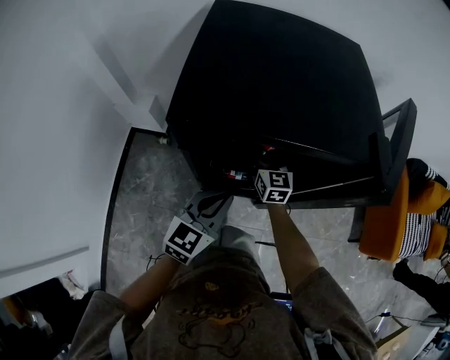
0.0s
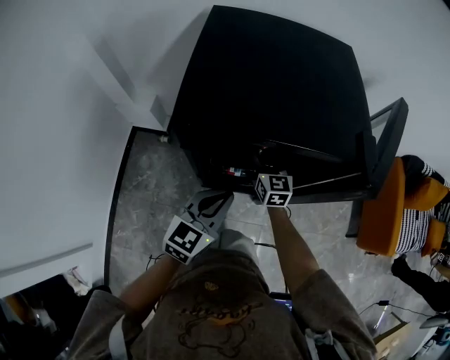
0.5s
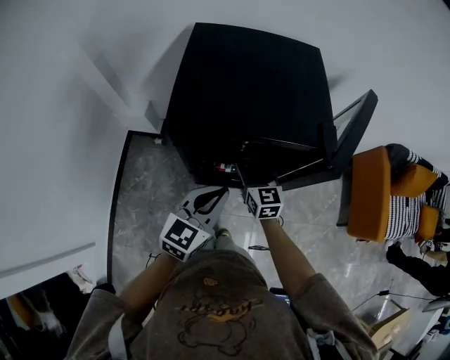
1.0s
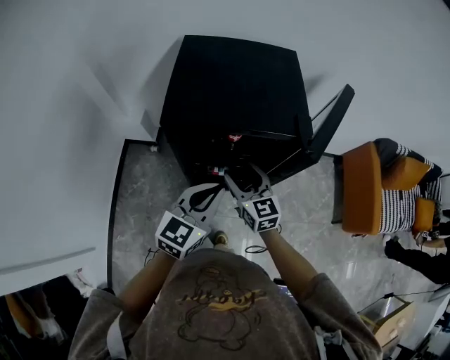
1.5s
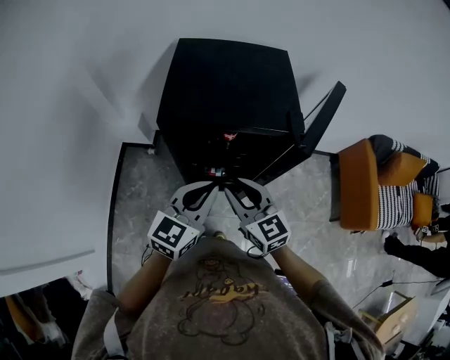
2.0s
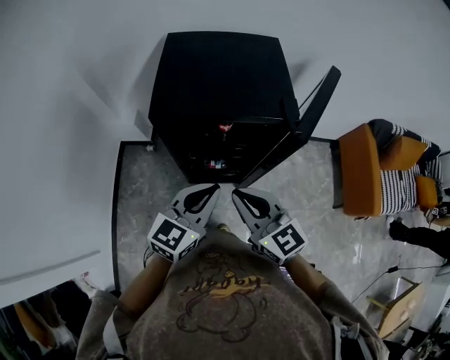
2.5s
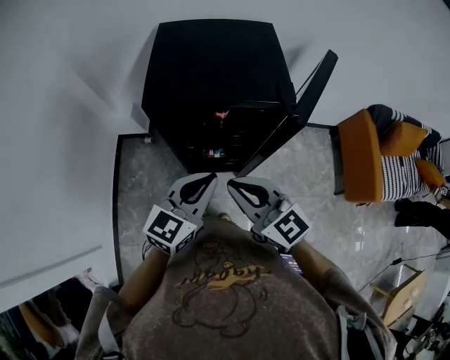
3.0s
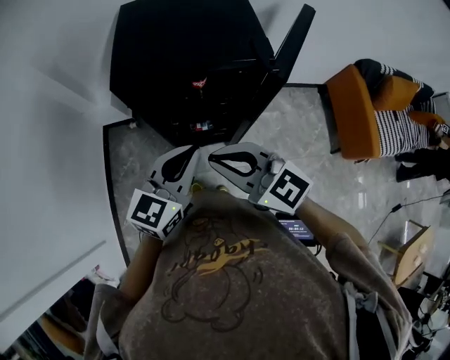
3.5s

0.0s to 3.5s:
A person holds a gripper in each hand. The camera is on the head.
0.0s to 2.0s: The left gripper heads upward, covering approximately 20 cm, while the right gripper moves backward and upward, about 35 cm, and closes.
2.0s to 3.5s: The right gripper heads backward and upward, covering approximately 10 cm, and closes its fingers.

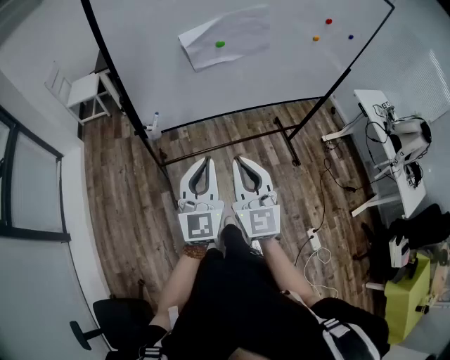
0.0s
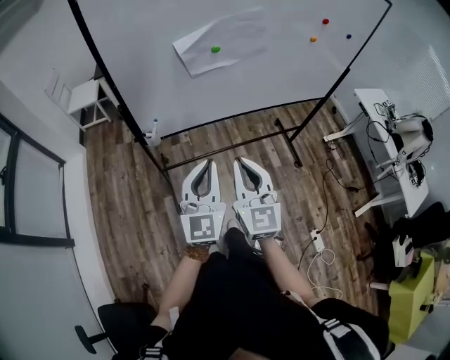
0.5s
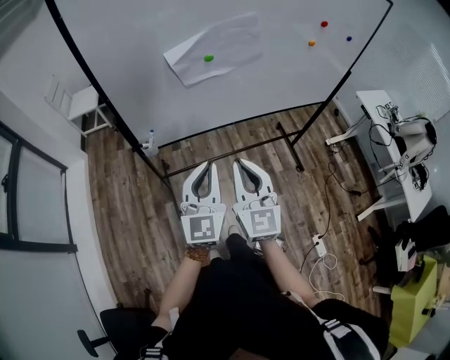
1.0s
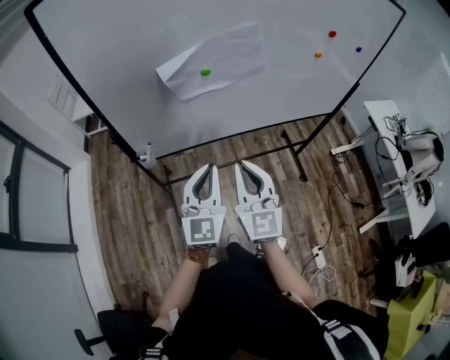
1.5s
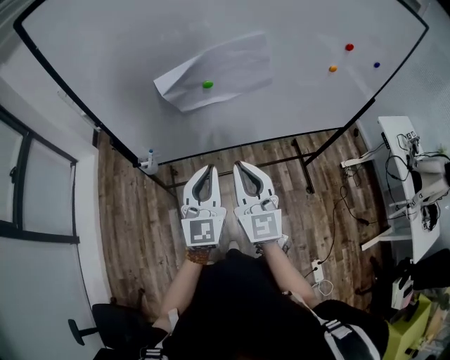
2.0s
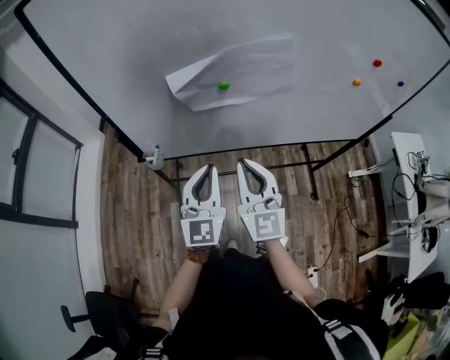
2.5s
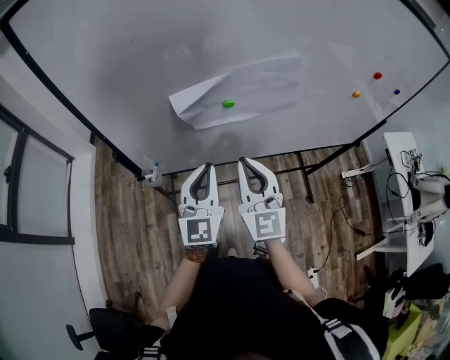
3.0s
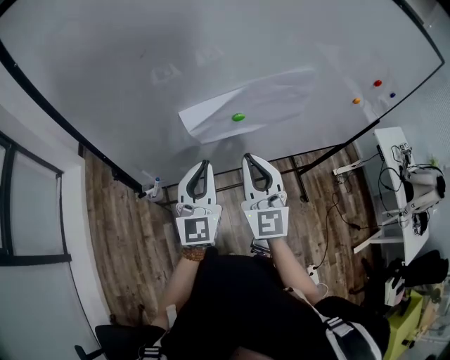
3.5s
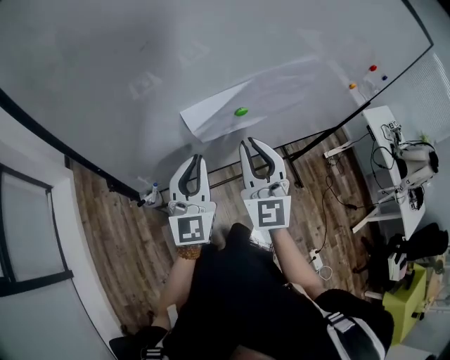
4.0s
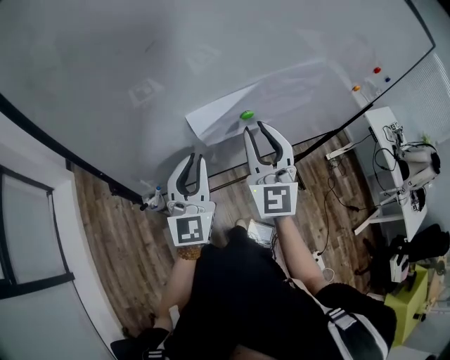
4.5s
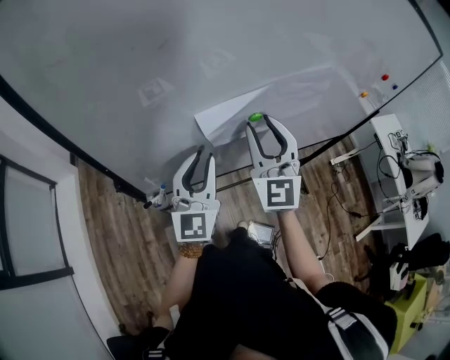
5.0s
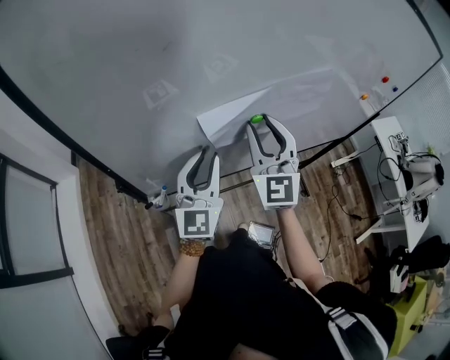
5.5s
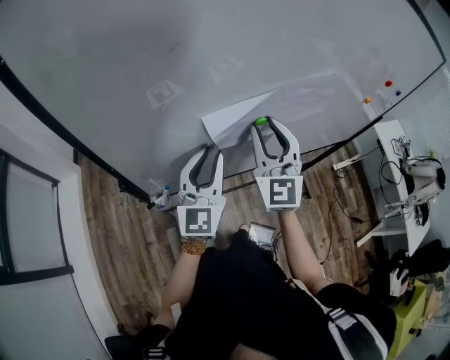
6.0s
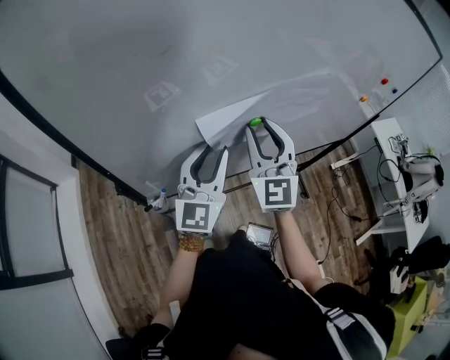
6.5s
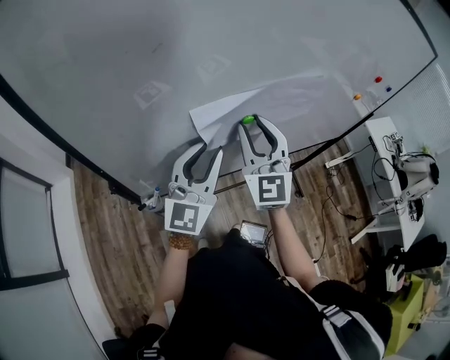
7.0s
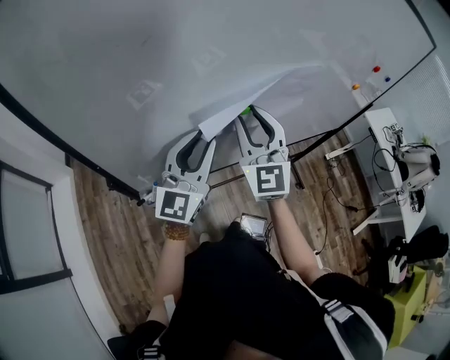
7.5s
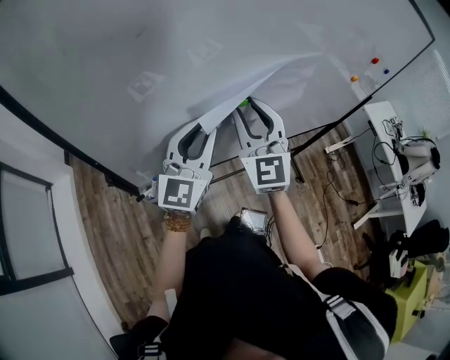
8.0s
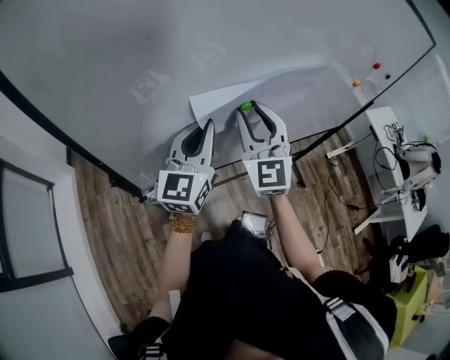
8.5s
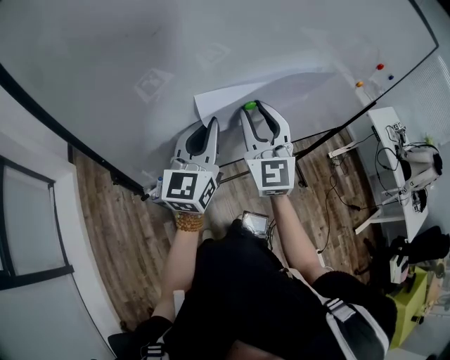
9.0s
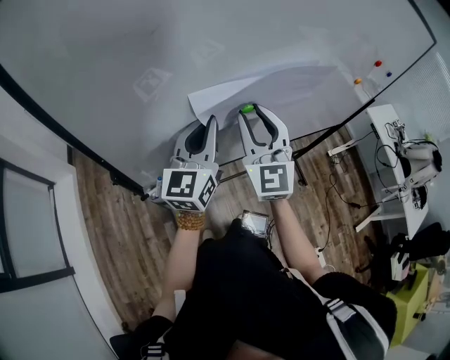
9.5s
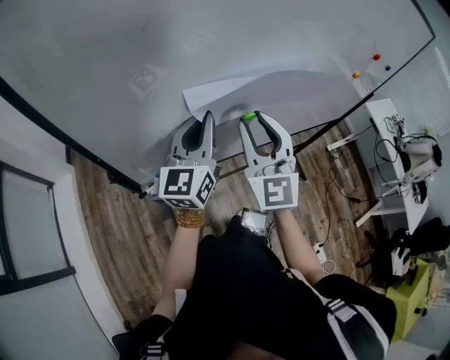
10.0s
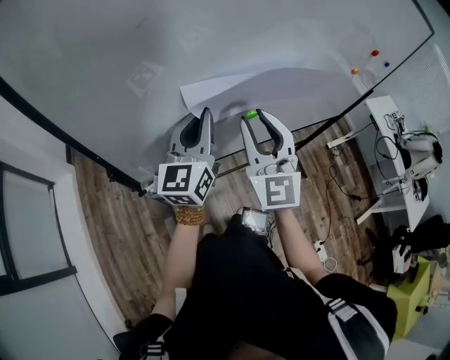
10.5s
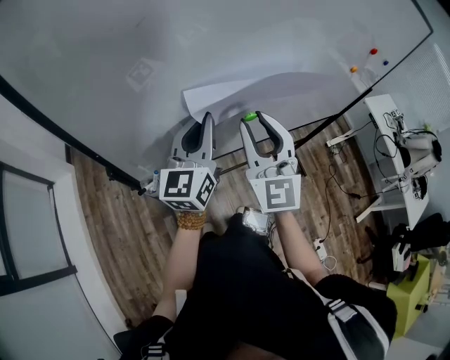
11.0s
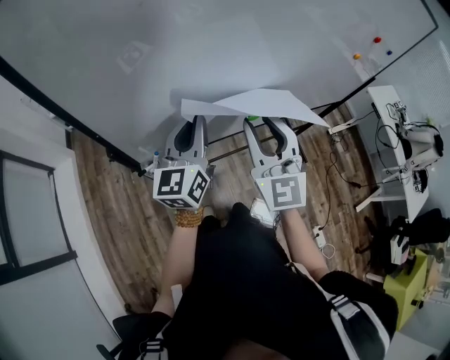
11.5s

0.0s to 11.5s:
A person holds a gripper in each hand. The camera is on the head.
0.0s to 2.0s: The grippers both shift forward and to the right by approximately 20 cm.
2.0s to 4.0s: The right gripper is displaced forward by roughly 15 cm. The left gripper goes about 20 cm forward and to the left.
4.0s to 6.0s: The right gripper is displaced forward by some 5 cm.
6.0s to 7.5s: The grippers stay close to where they were, moving slightly.
7.5s to 9.5s: The left gripper closes up.
9.5s to 11.5s: The right gripper moves backward, roughly 10 cm, while the left gripper moves approximately 5 cm.

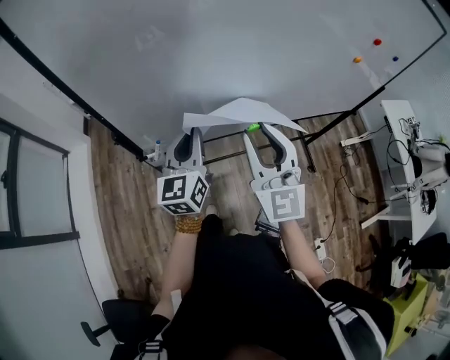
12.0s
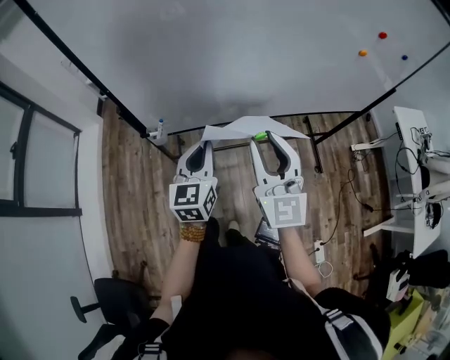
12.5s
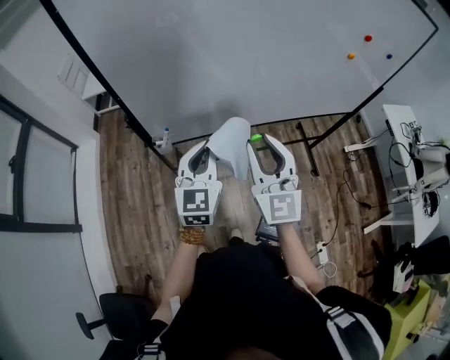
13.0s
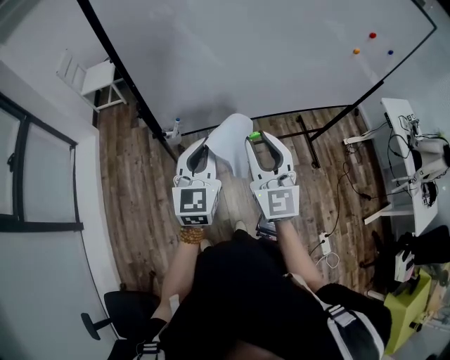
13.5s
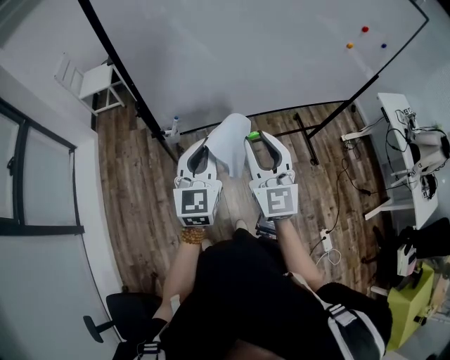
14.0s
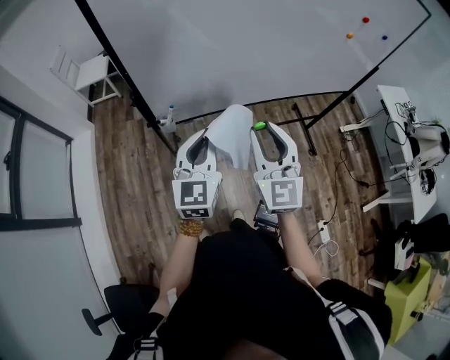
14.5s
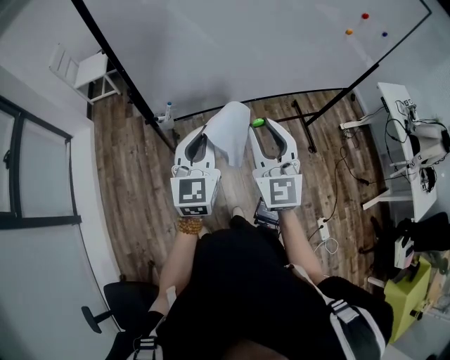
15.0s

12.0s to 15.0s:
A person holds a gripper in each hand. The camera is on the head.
12.0s to 13.5s: The left gripper goes about 10 cm backward. Meanwhile the right gripper moves backward and to the left, approximately 10 cm.
13.5s to 15.0s: There are only small adjustments of the grippers.

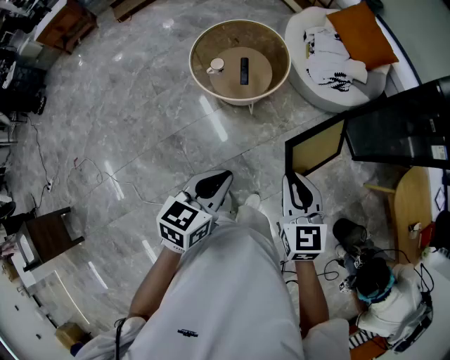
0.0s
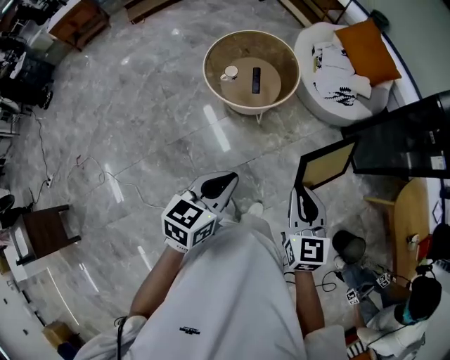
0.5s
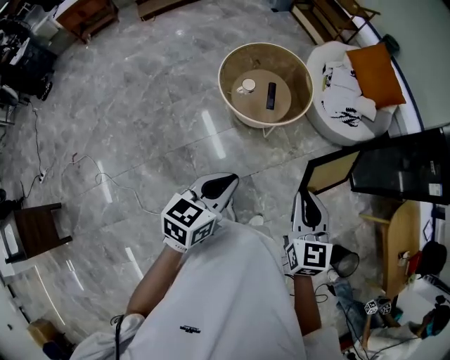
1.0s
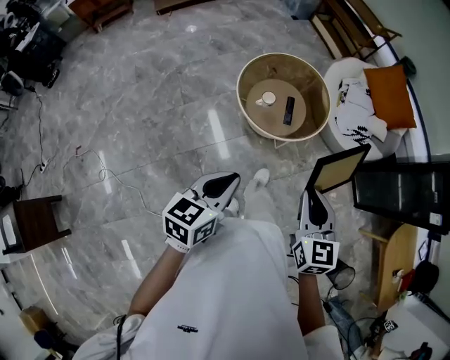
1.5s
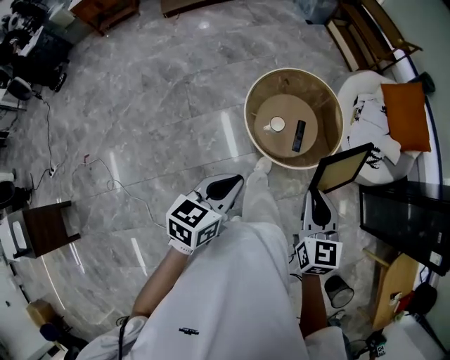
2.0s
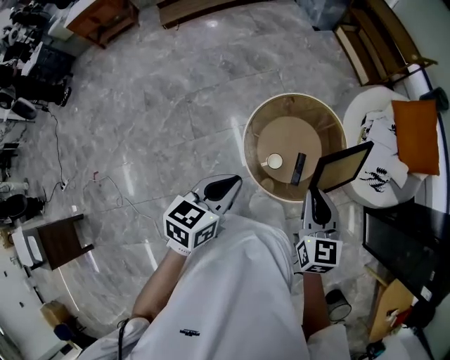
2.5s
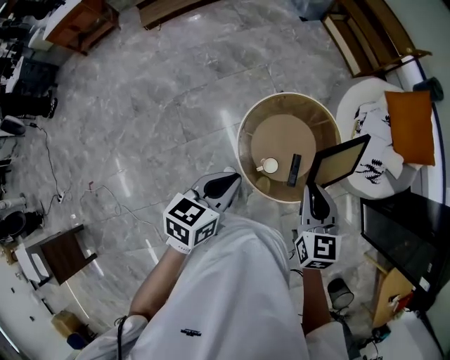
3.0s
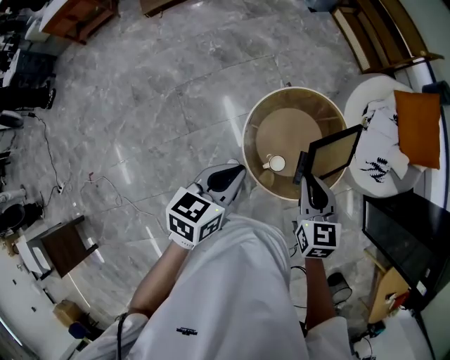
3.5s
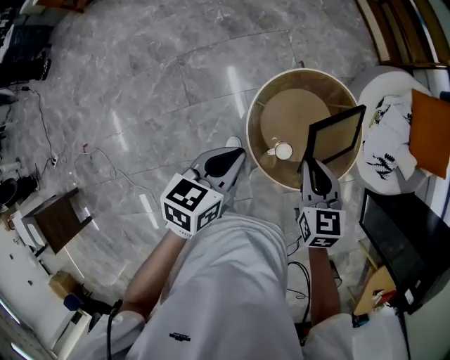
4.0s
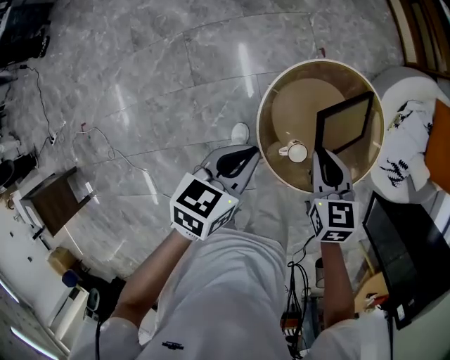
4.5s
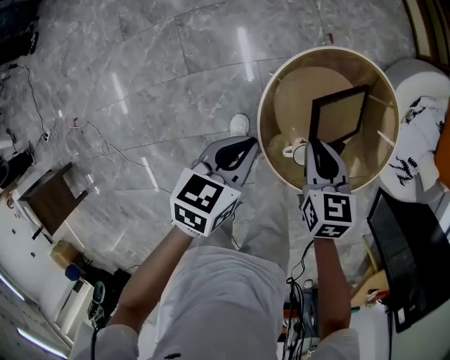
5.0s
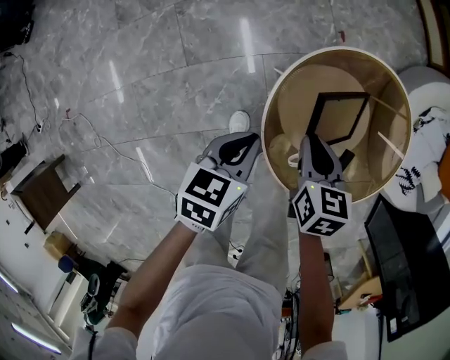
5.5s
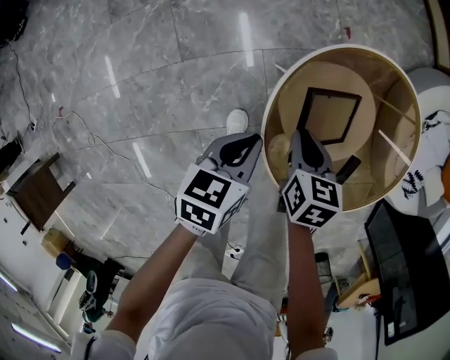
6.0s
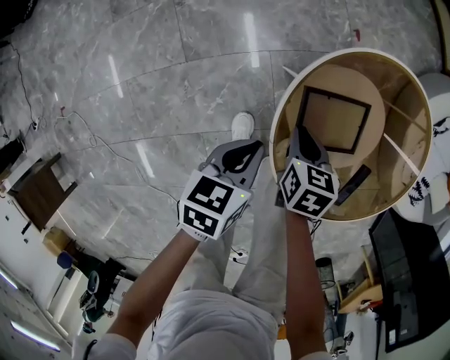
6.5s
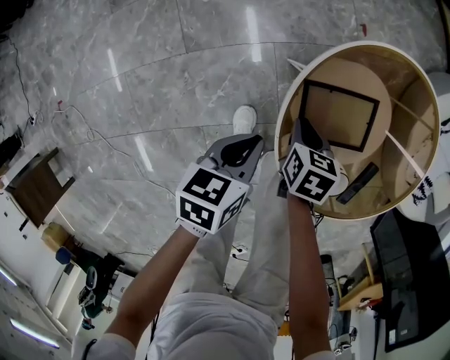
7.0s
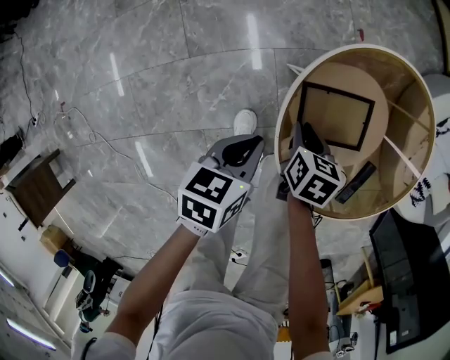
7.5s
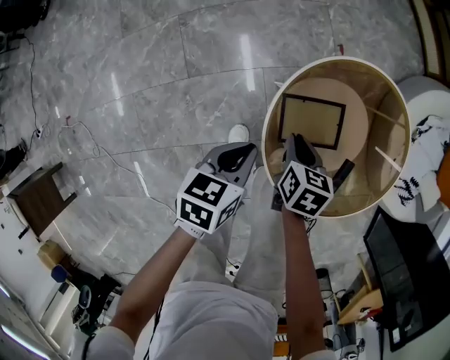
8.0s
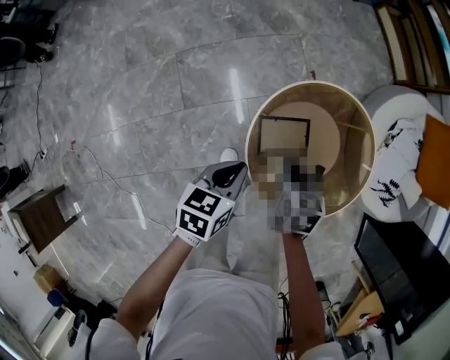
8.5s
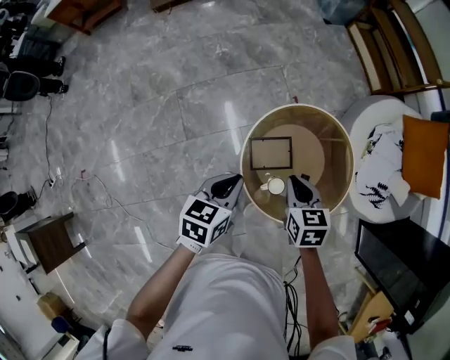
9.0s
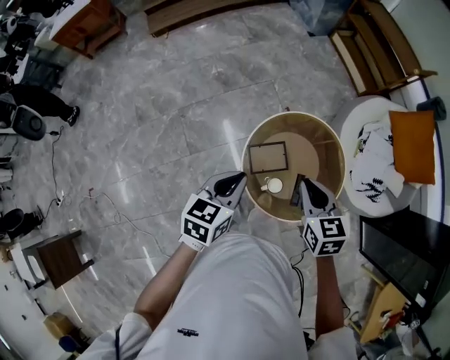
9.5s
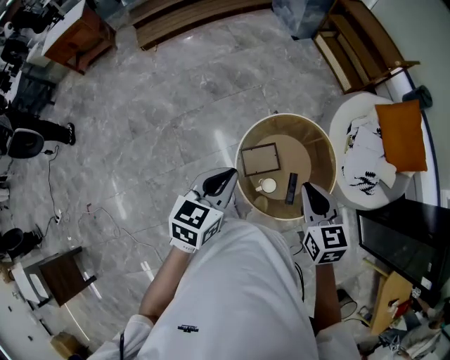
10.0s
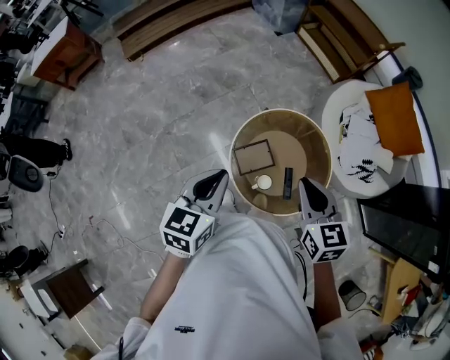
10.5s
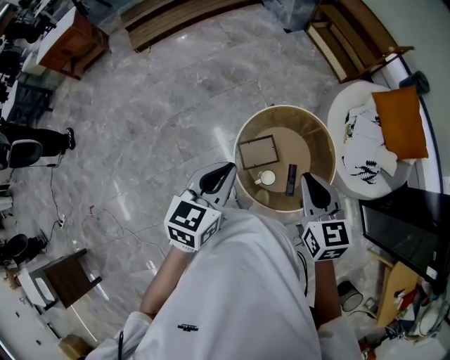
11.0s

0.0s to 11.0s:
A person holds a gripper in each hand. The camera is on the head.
0.0s to 2.0s: The grippers both shift to the left and forward by approximately 35 cm.
2.0s to 3.5s: The grippers both shift forward by about 30 cm.
3.5s to 5.5s: Both grippers move downward, roughly 35 cm. The right gripper turns by approximately 20 degrees.
5.5s to 7.5s: The right gripper shifts some 15 cm downward. The left gripper shifts about 10 cm downward.
7.5s to 9.0s: The two grippers go approximately 35 cm upward. The right gripper swivels roughly 20 degrees.
9.0s to 11.0s: The grippers both shift upward by some 20 cm. The right gripper swivels about 20 degrees, while the left gripper turns by roughly 20 degrees.
